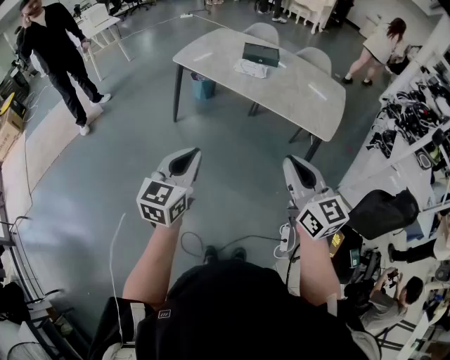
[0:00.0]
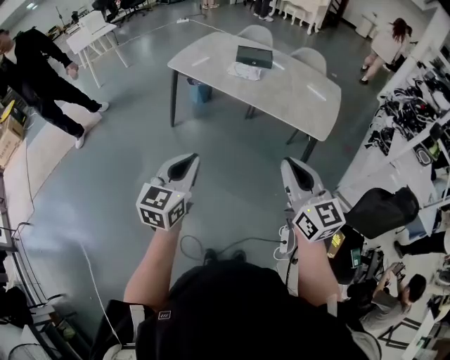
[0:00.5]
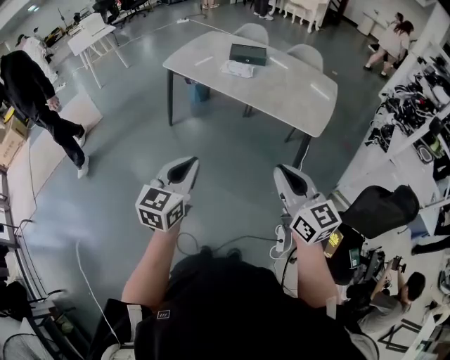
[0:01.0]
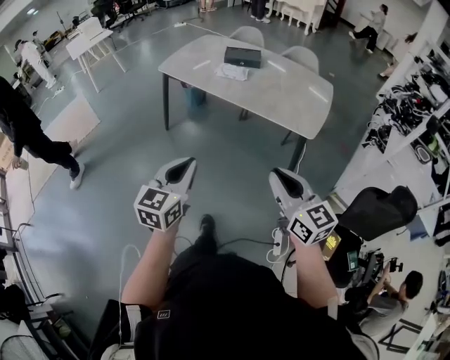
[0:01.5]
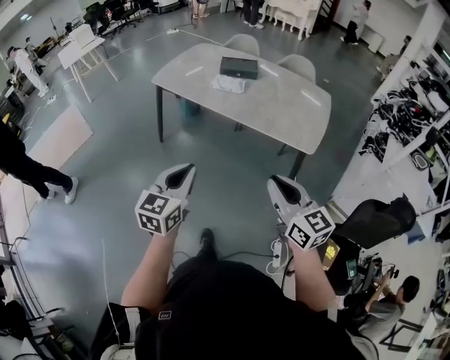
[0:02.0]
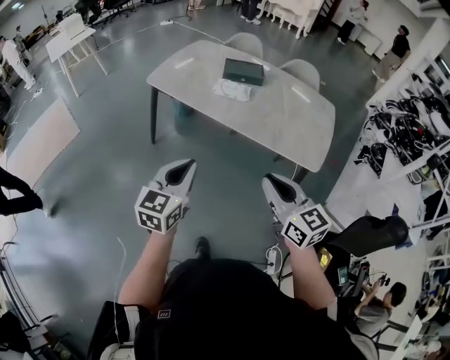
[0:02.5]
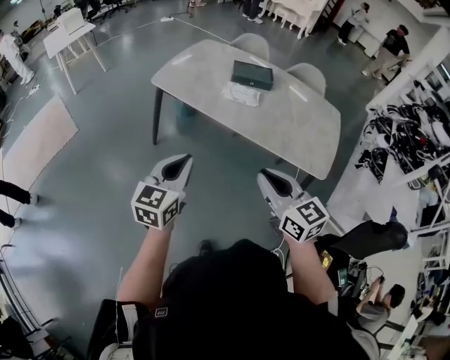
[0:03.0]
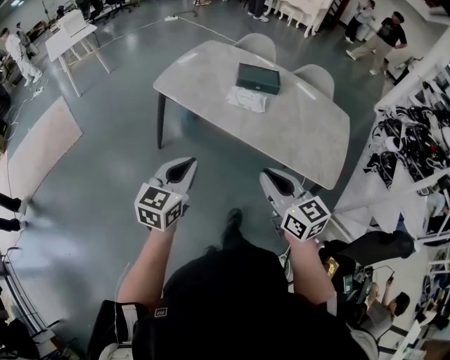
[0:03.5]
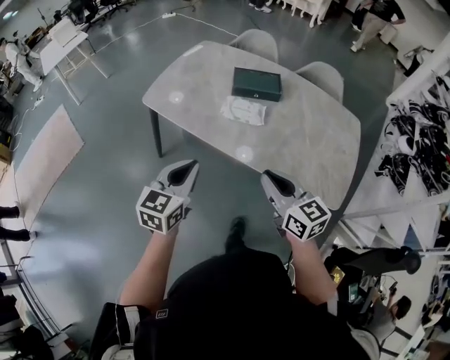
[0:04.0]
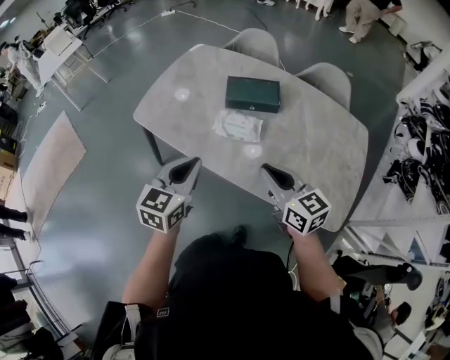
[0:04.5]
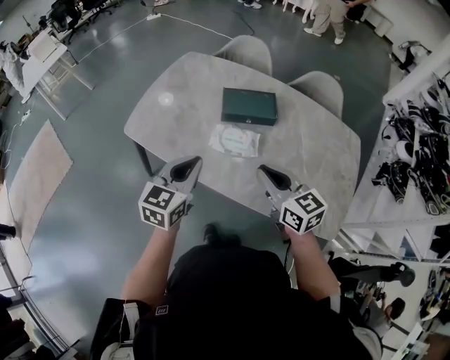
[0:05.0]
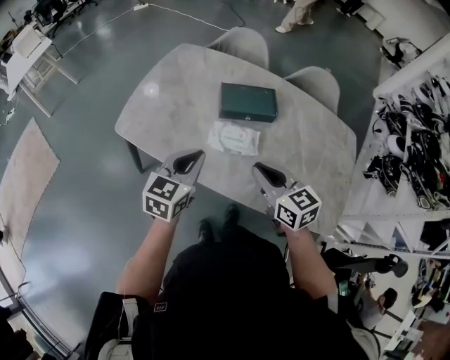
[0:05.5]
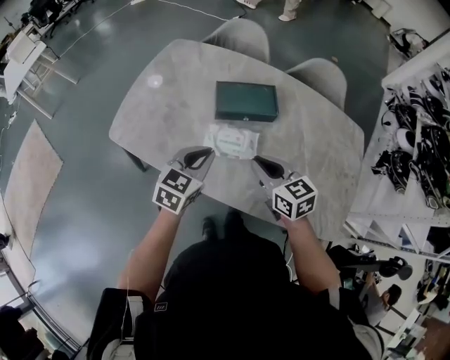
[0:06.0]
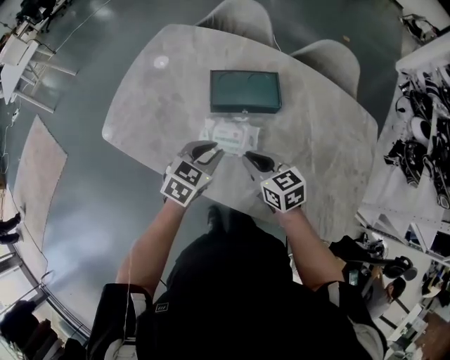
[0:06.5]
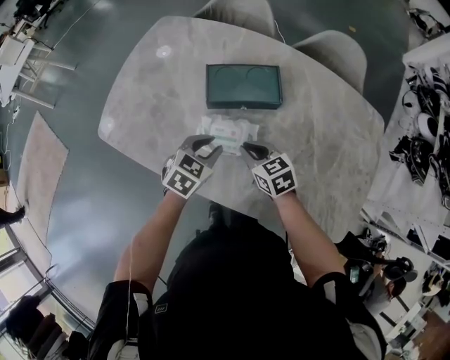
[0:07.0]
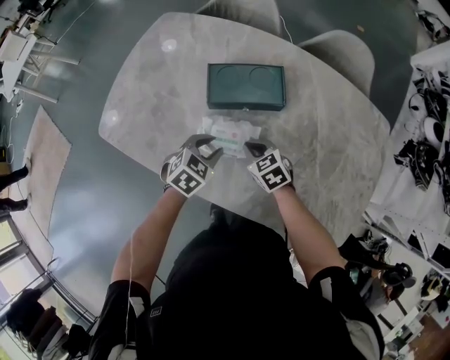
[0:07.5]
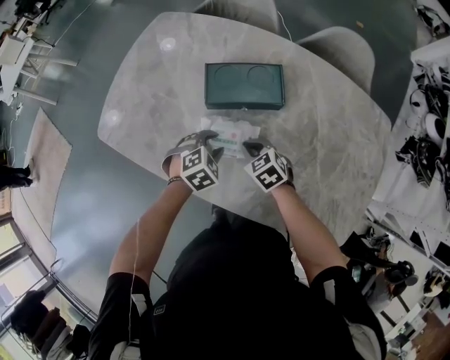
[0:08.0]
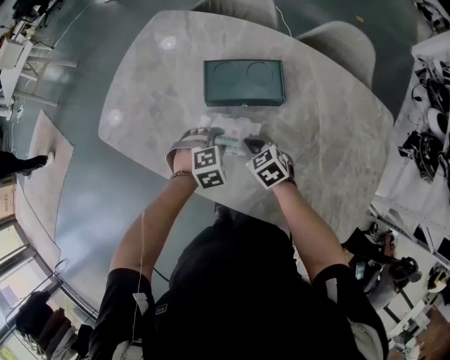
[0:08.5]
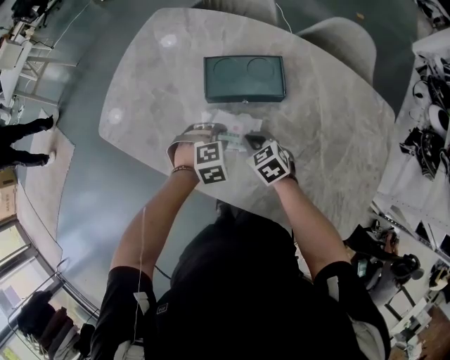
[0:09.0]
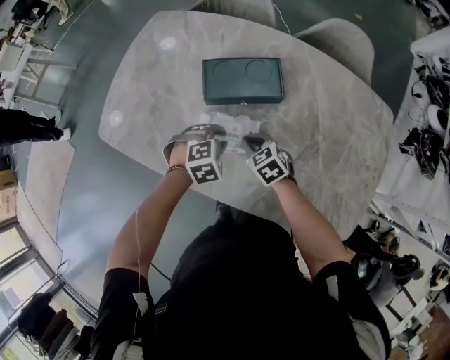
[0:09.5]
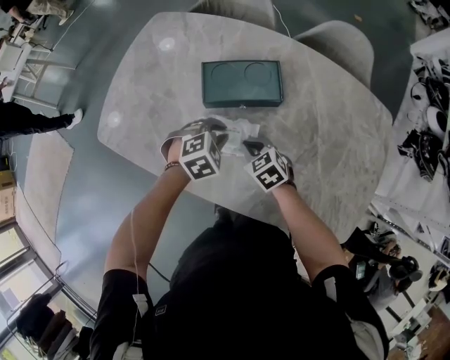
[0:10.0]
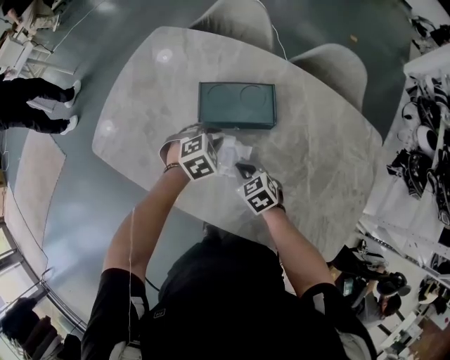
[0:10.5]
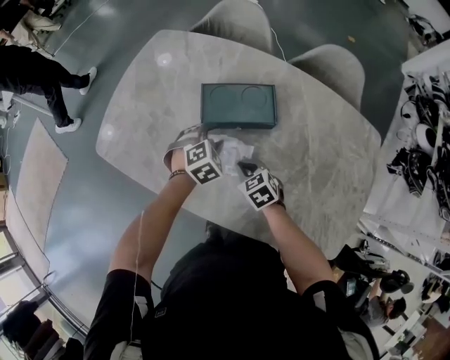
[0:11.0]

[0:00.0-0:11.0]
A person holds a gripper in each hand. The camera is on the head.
0:00.0 to 0:02.0: The left gripper moves to the right and forward, roughly 10 cm. The right gripper travels to the right by roughly 10 cm.
0:02.0 to 0:03.5: The grippers both shift forward and to the left by about 30 cm.
0:03.5 to 0:05.5: Both grippers move forward, about 40 cm.
0:05.5 to 0:07.5: The right gripper moves downward and forward, about 30 cm, and turns by approximately 30 degrees; the left gripper moves downward, forward and to the right, approximately 25 cm, points its fingers approximately 30 degrees further downward, and opens up.
0:07.5 to 0:09.0: The left gripper shifts by roughly 5 cm, and changes its angle by roughly 40 degrees.
0:09.0 to 0:11.0: The left gripper shifts approximately 10 cm forward.

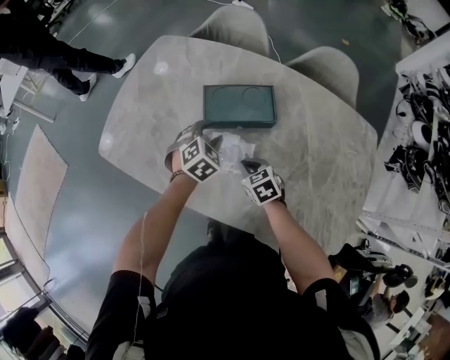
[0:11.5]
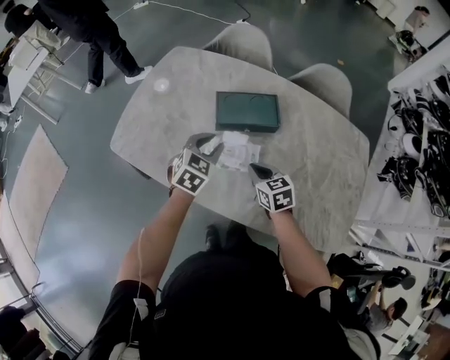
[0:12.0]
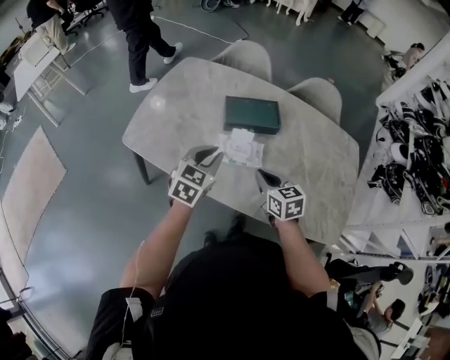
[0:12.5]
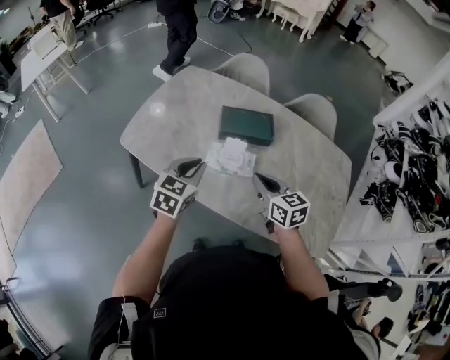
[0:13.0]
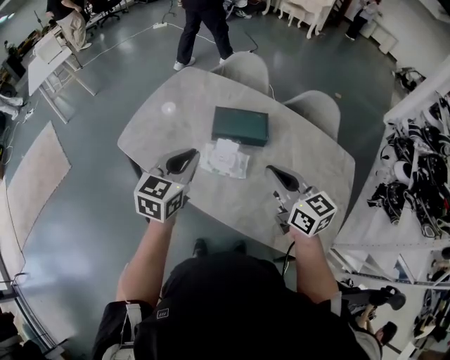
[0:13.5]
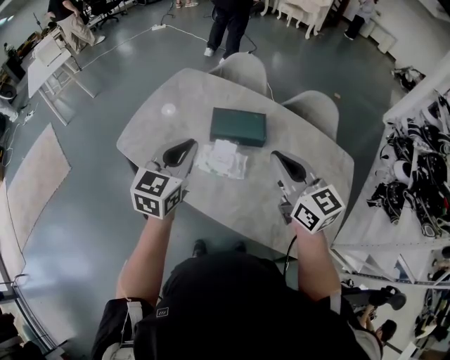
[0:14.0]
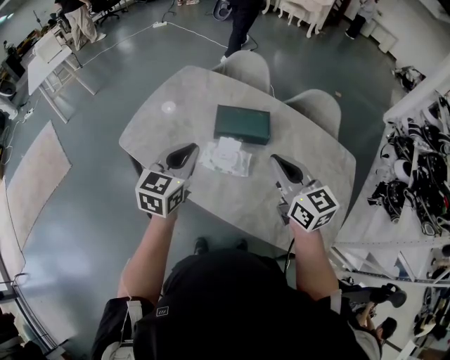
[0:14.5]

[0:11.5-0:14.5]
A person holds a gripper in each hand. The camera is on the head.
0:11.5 to 0:13.0: The left gripper moves backward, upward and to the left, some 30 cm, changes its angle by some 40 degrees, and closes; the right gripper moves upward and backward, about 25 cm, and rotates about 30 degrees.
0:13.0 to 0:14.5: The left gripper goes roughly 10 cm upward. The right gripper travels upward and to the right by approximately 15 cm.

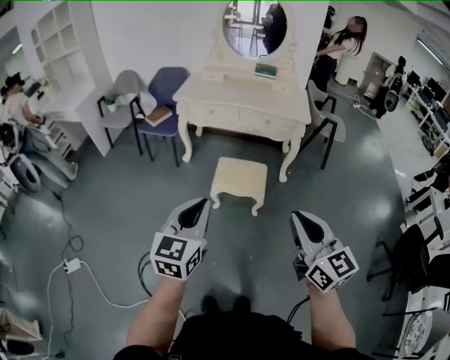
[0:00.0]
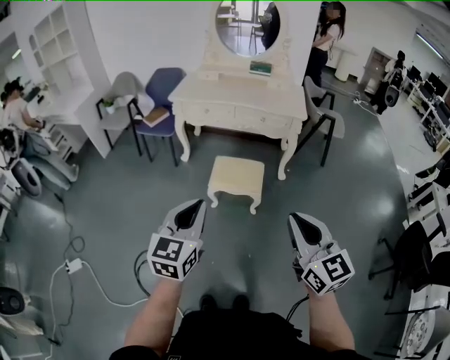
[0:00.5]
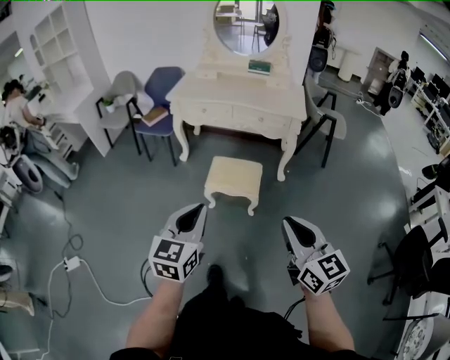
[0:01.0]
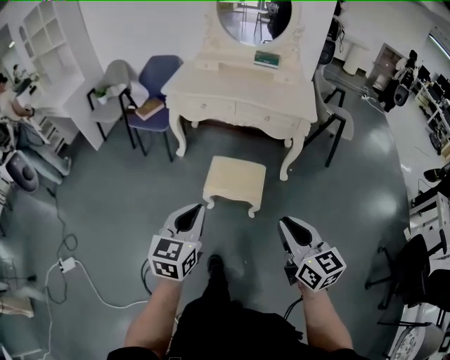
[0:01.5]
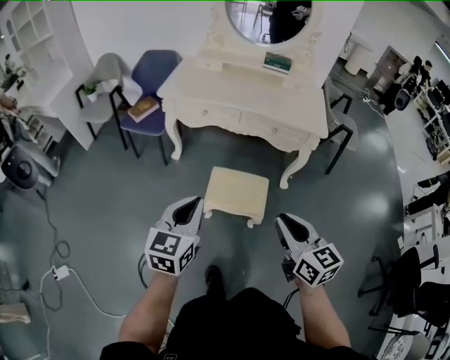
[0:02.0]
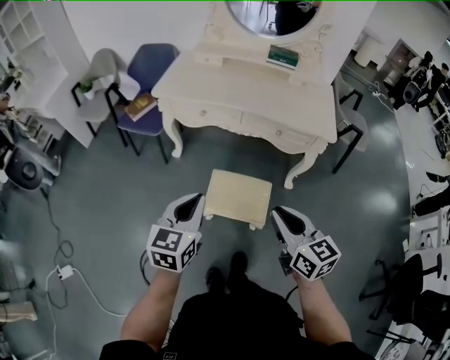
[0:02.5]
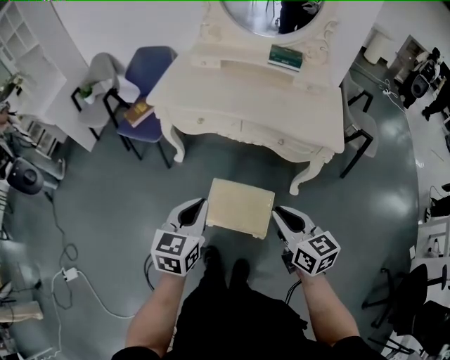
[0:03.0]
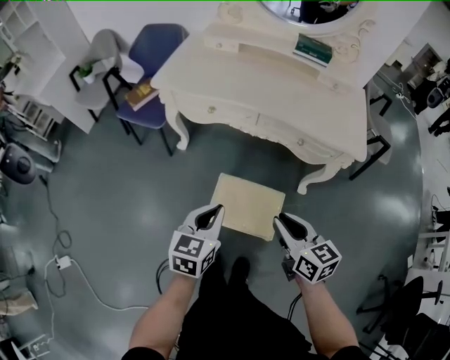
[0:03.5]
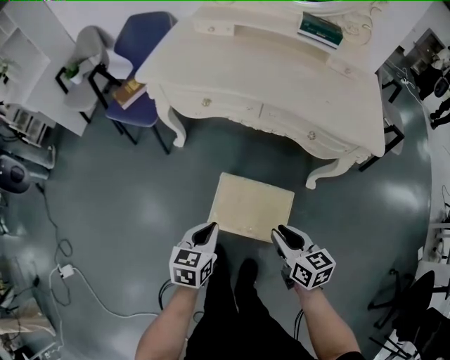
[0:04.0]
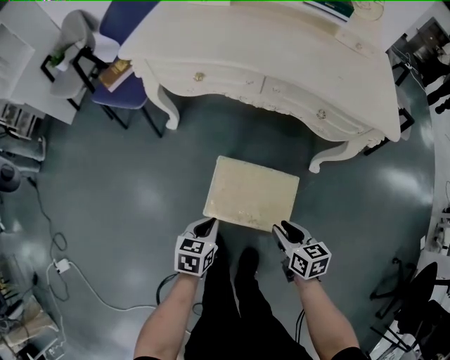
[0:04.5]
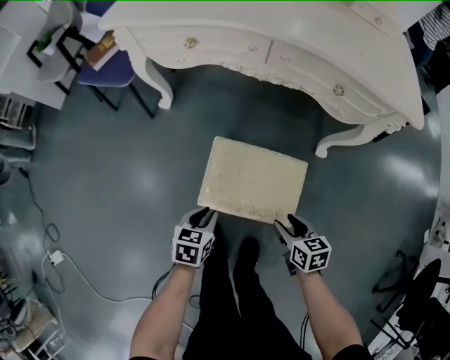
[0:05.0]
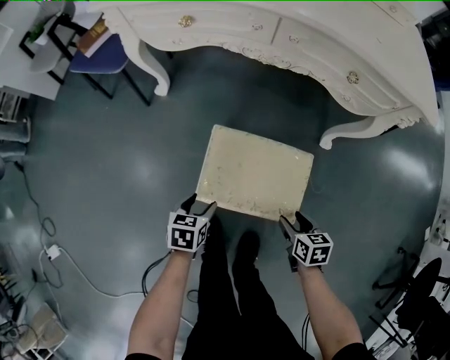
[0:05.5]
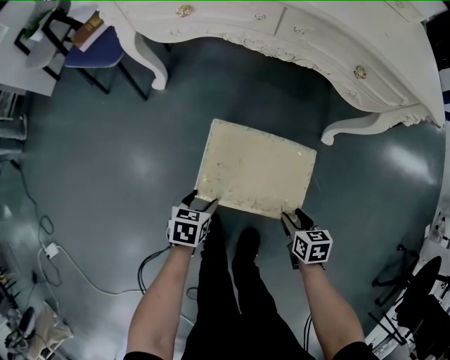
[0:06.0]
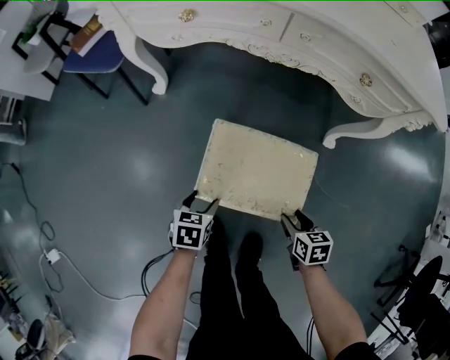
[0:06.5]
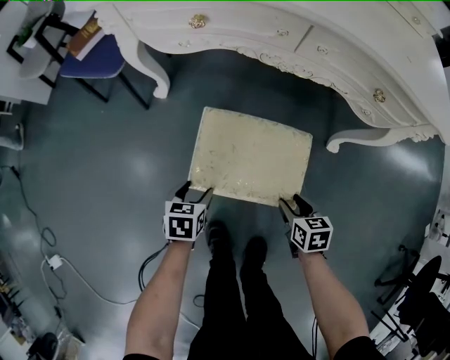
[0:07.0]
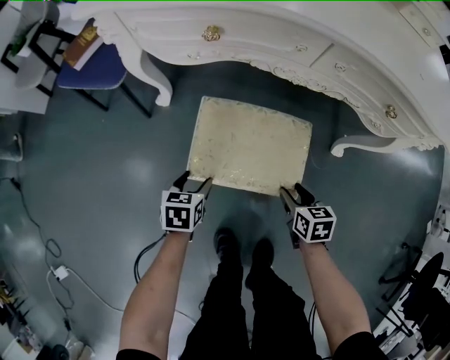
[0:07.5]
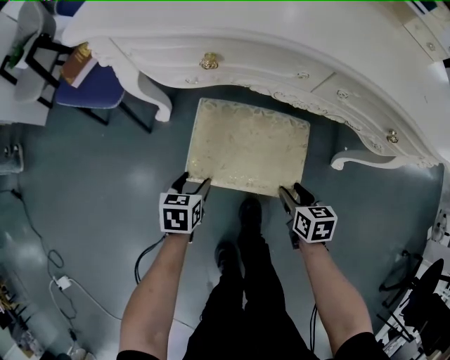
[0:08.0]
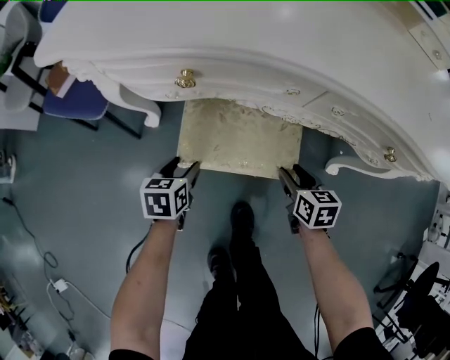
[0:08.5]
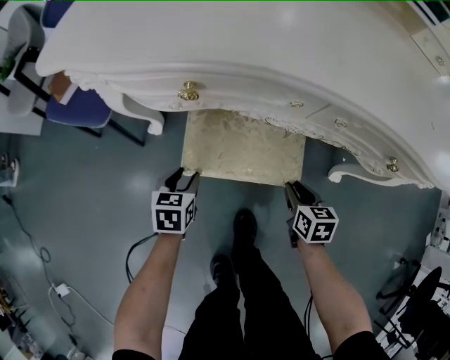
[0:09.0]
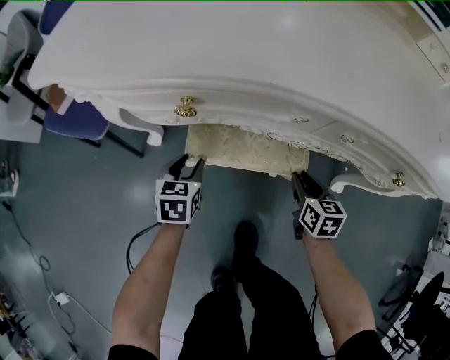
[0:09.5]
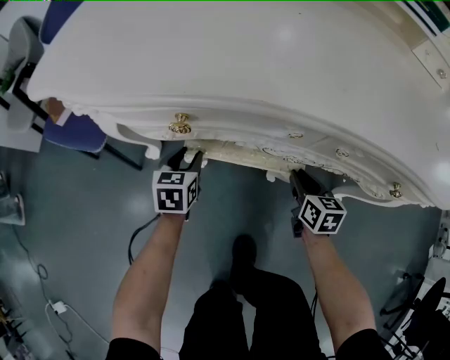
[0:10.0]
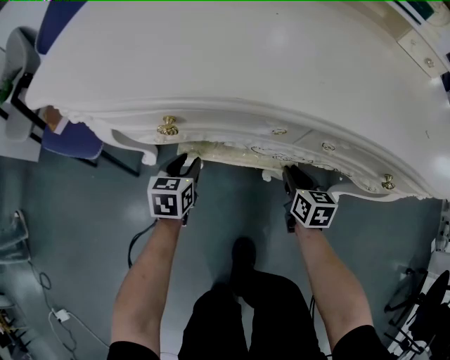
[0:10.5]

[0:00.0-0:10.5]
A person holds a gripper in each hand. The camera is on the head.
0:00.0 to 0:02.0: Both grippers travel together forward, some 30 cm.
0:02.0 to 0:04.0: The two grippers go roughly 35 cm downward and forward. The left gripper rotates about 30 degrees; the right gripper changes its angle by roughly 20 degrees.
0:04.0 to 0:06.5: The two grippers go approximately 30 cm downward. The right gripper changes its angle by about 30 degrees, and opens. The left gripper turns by some 20 degrees, and opens up.
0:06.5 to 0:08.5: Both grippers travel together forward, roughly 30 cm.
0:08.5 to 0:10.5: The two grippers go some 10 cm forward. The right gripper closes its fingers.

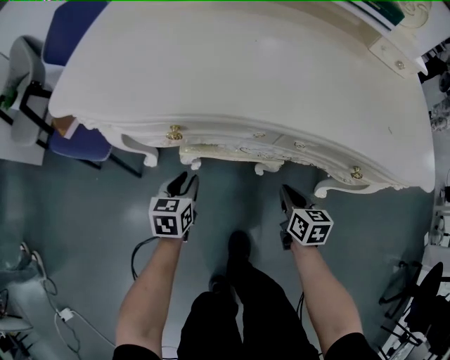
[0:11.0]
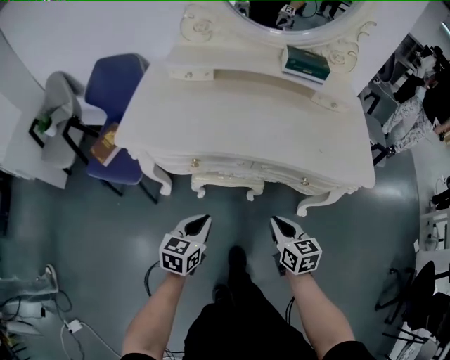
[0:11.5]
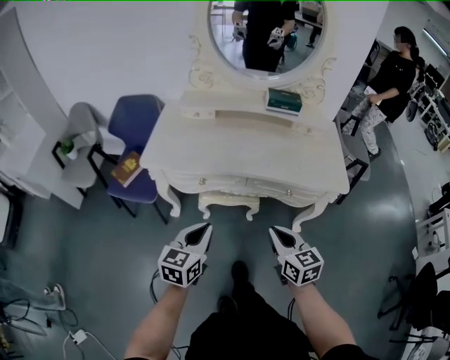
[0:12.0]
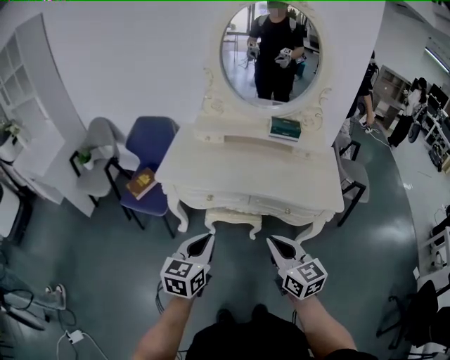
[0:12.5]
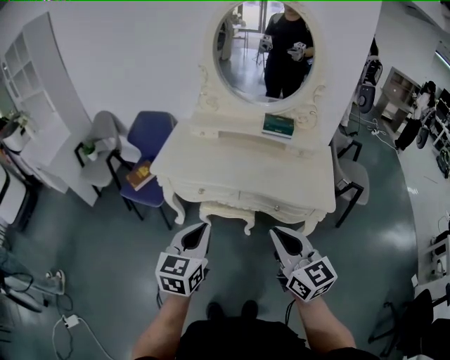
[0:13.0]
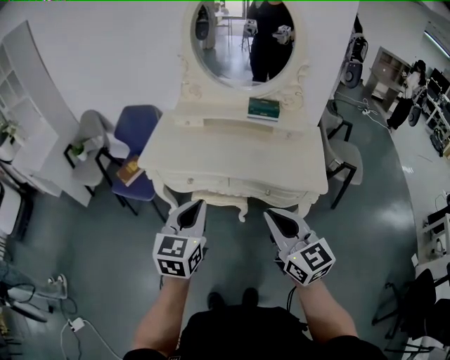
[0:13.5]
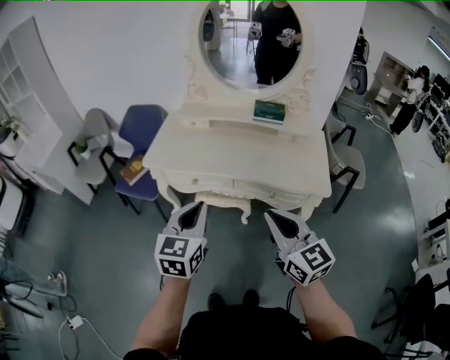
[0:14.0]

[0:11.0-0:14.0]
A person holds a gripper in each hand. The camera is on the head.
0:11.0 to 0:12.5: Both grippers travel together upward and backward, roughly 50 cm. The left gripper turns by approximately 20 degrees, and closes. Meanwhile the right gripper rotates approximately 40 degrees.
0:12.5 to 0:14.0: Both grippers travel together upward and to the right, some 10 cm.
